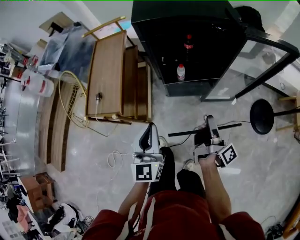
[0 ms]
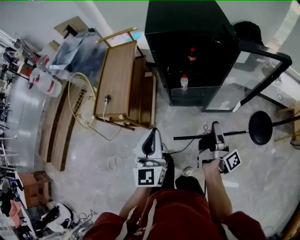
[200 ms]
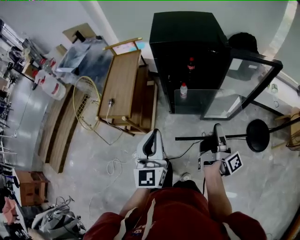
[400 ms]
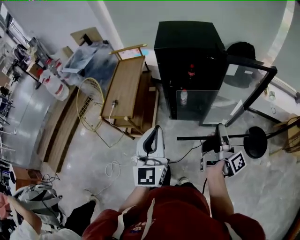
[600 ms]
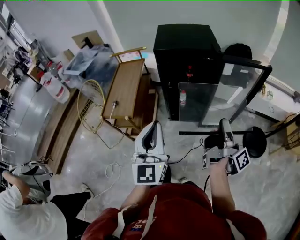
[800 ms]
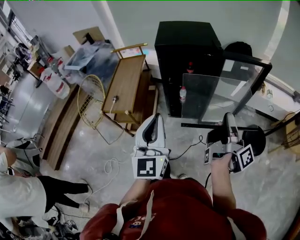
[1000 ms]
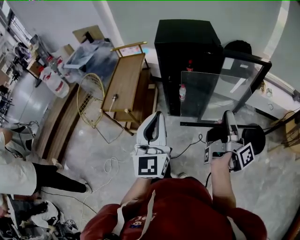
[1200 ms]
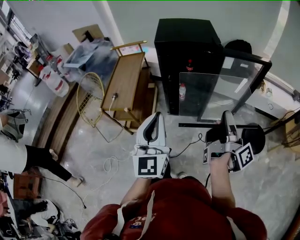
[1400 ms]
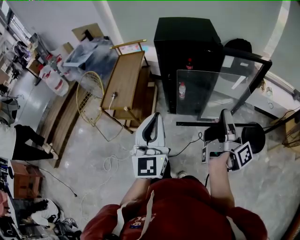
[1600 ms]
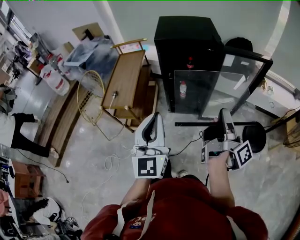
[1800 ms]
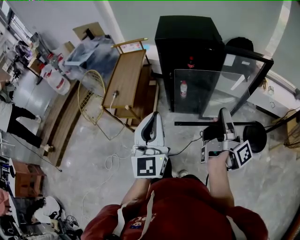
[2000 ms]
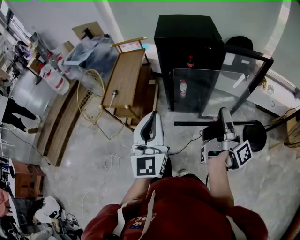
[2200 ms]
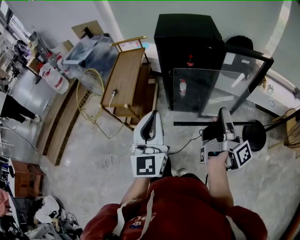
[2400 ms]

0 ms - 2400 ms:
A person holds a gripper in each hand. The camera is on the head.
0 ms - 1200 ms: The grippers both shift upward and backward by about 25 cm.
1200 ms - 2400 ms: The grippers stay close to where they were, moving slightly.

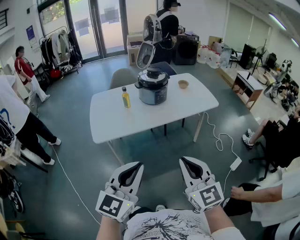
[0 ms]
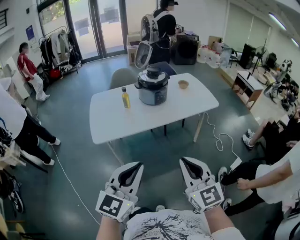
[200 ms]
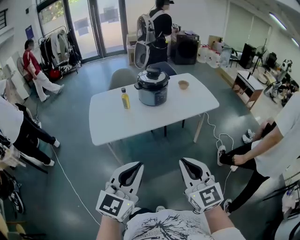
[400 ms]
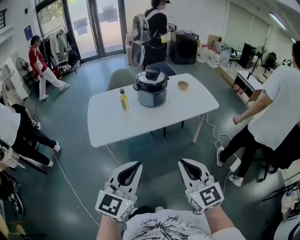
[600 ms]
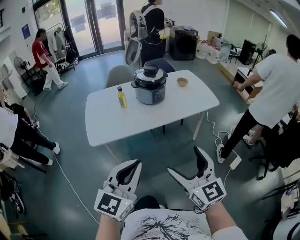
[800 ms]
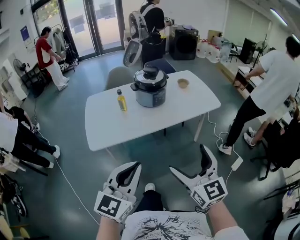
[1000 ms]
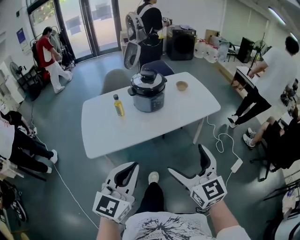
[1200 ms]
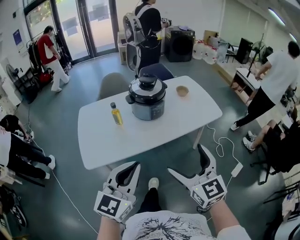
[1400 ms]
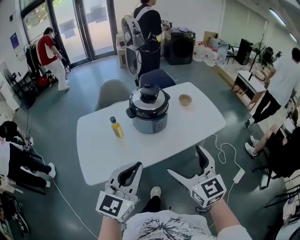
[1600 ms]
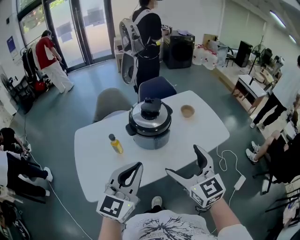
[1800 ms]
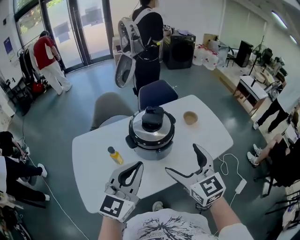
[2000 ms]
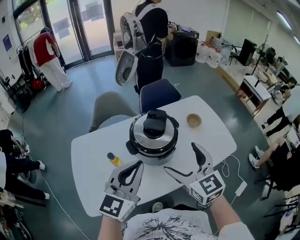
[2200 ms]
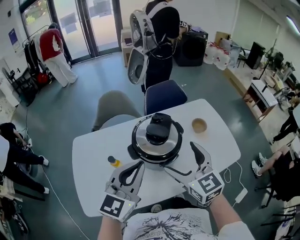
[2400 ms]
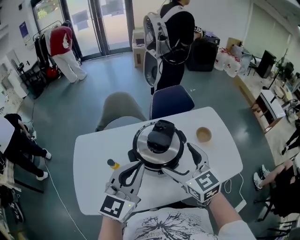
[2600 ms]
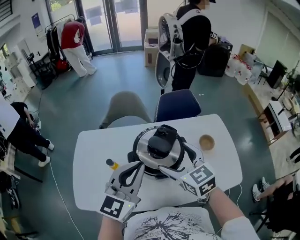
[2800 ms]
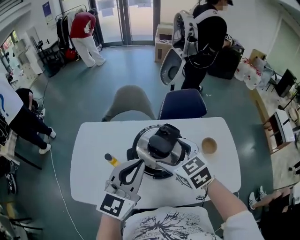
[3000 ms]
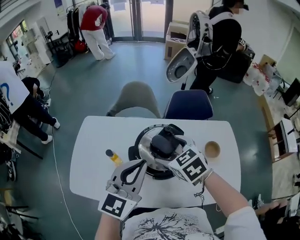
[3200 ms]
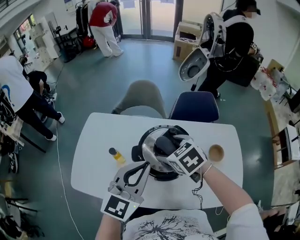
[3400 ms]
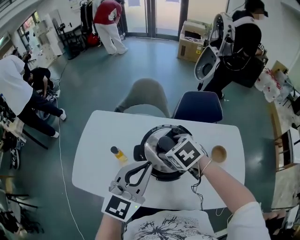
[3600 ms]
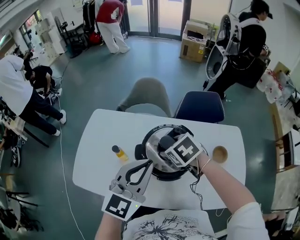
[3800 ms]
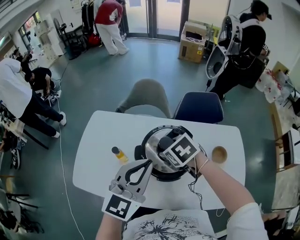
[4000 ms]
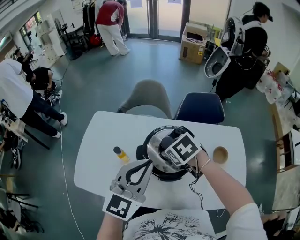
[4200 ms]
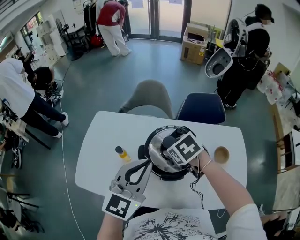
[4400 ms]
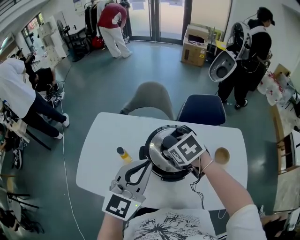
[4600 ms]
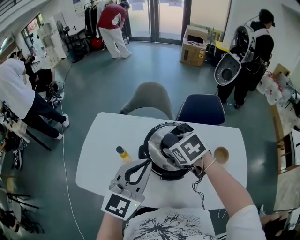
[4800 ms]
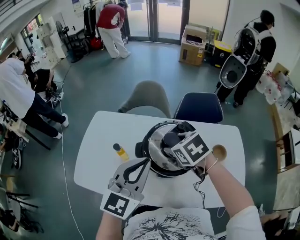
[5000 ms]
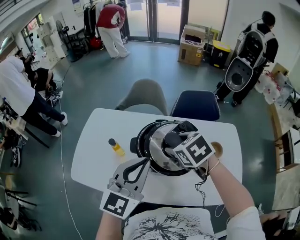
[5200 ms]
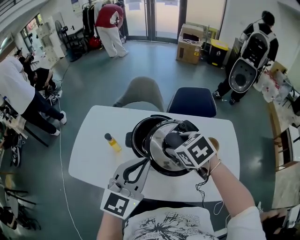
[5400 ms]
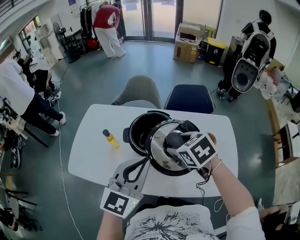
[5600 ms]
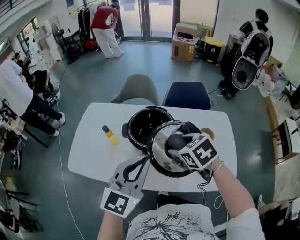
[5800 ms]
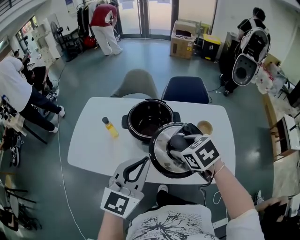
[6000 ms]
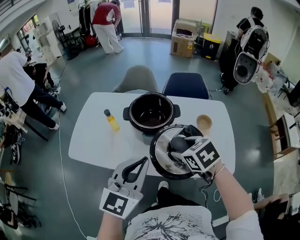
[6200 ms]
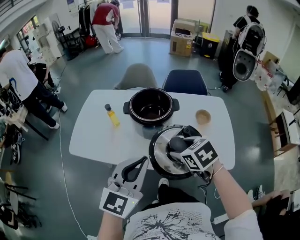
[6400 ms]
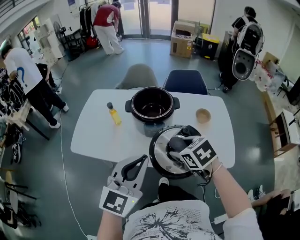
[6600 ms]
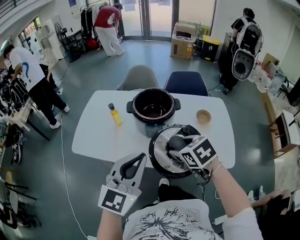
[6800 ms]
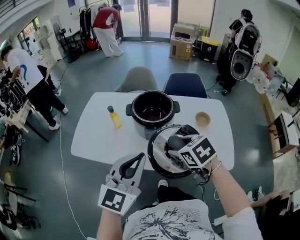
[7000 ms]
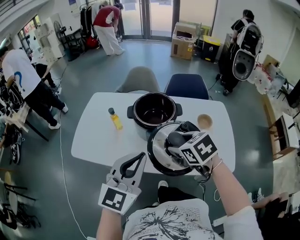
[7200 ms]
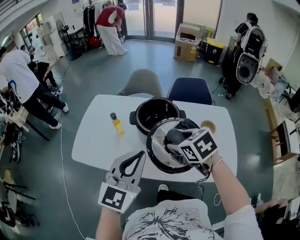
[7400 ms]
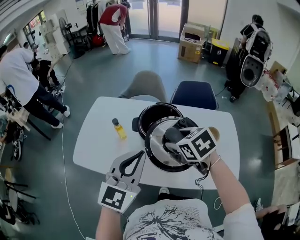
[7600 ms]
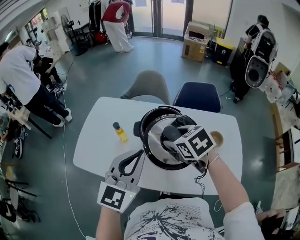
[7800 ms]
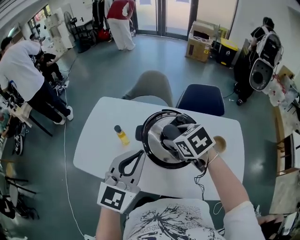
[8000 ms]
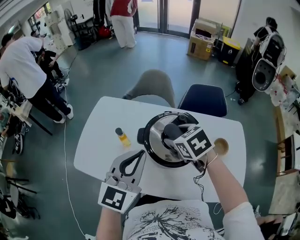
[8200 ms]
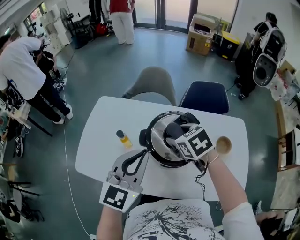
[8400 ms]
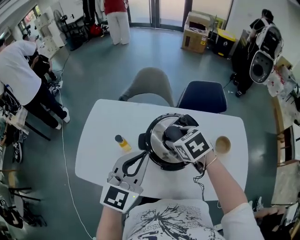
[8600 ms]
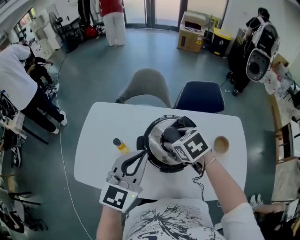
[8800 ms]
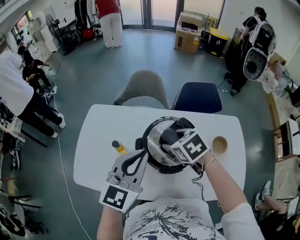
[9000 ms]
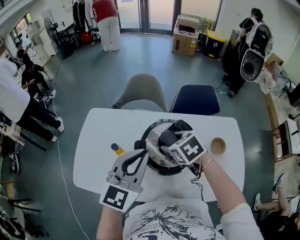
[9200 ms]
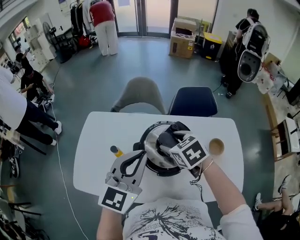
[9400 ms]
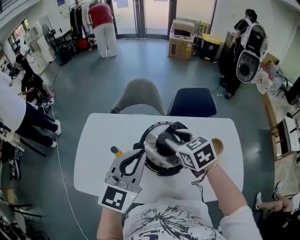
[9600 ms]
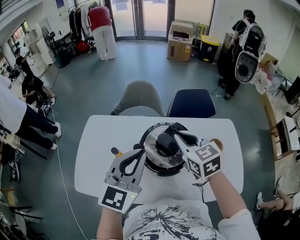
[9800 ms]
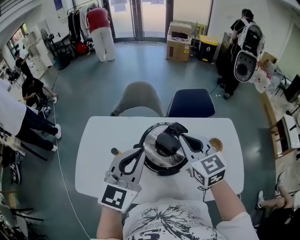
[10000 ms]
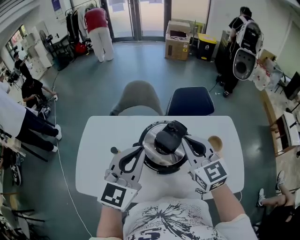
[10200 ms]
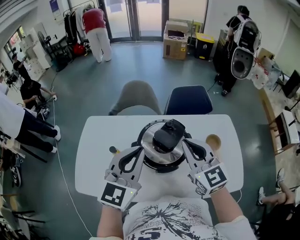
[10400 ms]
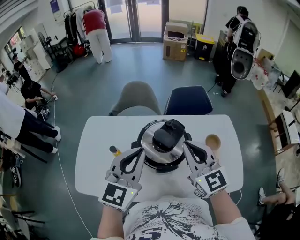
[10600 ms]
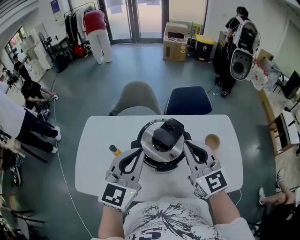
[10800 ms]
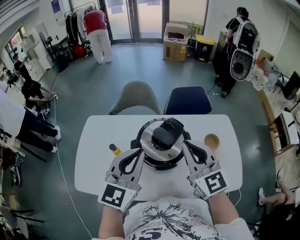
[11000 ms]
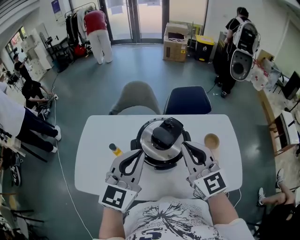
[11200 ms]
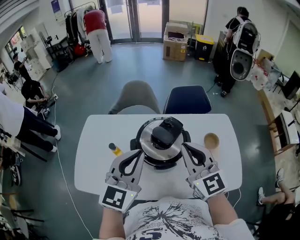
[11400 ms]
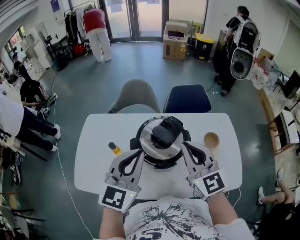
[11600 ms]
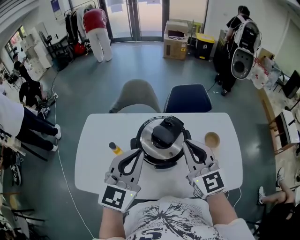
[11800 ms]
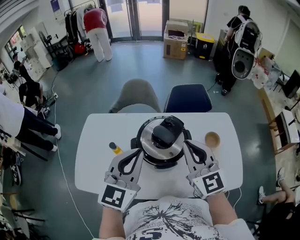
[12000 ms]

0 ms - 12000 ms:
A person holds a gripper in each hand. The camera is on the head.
0 ms - 1600 ms: Both grippers travel together forward, approximately 40 cm. The right gripper opens its fingers.
1600 ms - 3000 ms: The pair of grippers is taken forward, about 50 cm. The left gripper swivels approximately 20 degrees. Meanwhile the right gripper changes its angle by about 40 degrees.
3000 ms - 4400 ms: The right gripper shifts some 5 cm downward, and changes its angle by some 30 degrees.
4400 ms - 6000 ms: The left gripper is displaced backward by approximately 20 cm; the right gripper heads backward and to the right, covering some 25 cm.
6000 ms - 7600 ms: Both grippers travel together to the left, some 5 cm. The left gripper moves about 10 cm backward and comes back. Meanwhile the right gripper travels backward and back again, roughly 10 cm each way.
7600 ms - 9000 ms: The grippers both shift forward by about 20 cm.
9000 ms - 10400 ms: The right gripper shifts about 15 cm upward, backward and to the right, tilts its fingers roughly 50 degrees upward, and closes up; the left gripper ends up about 5 cm from where it was.
10400 ms - 12000 ms: The grippers make only small movements.

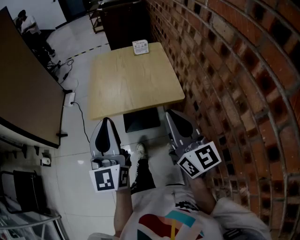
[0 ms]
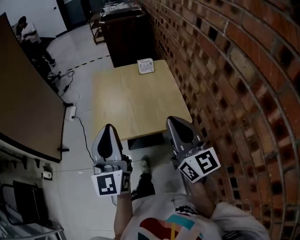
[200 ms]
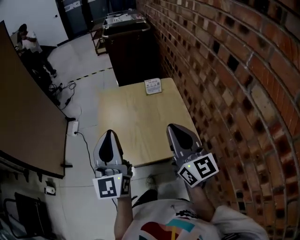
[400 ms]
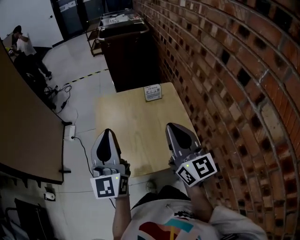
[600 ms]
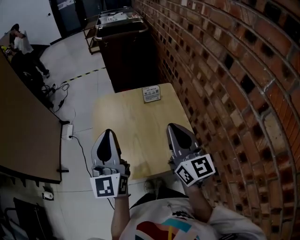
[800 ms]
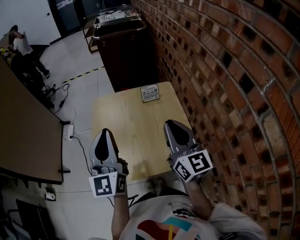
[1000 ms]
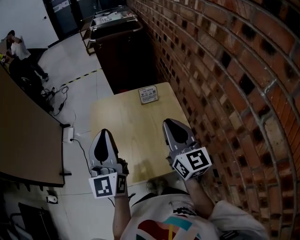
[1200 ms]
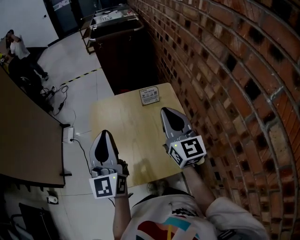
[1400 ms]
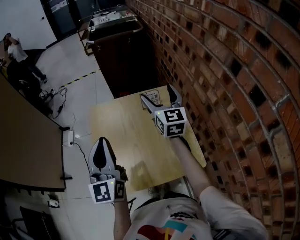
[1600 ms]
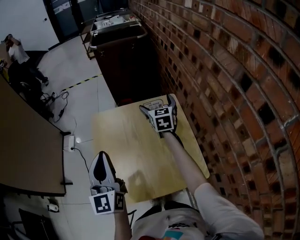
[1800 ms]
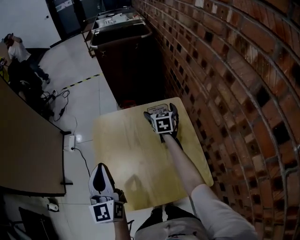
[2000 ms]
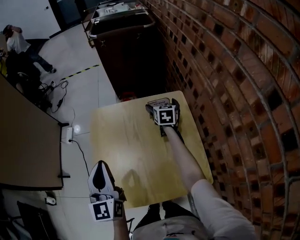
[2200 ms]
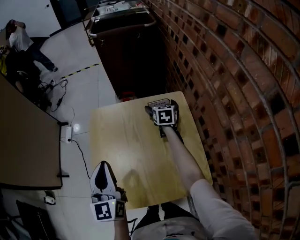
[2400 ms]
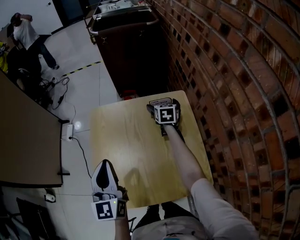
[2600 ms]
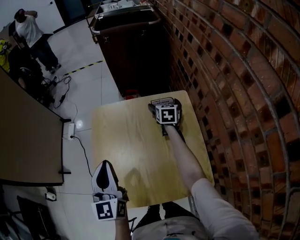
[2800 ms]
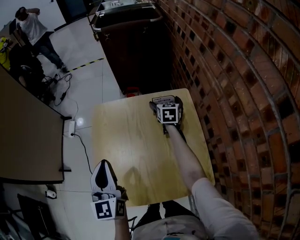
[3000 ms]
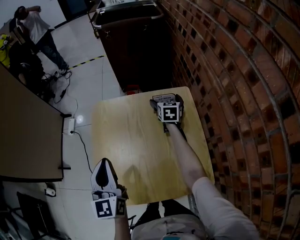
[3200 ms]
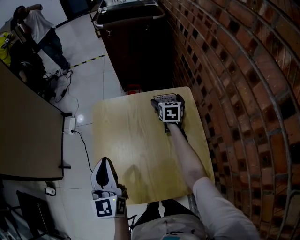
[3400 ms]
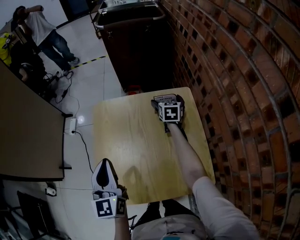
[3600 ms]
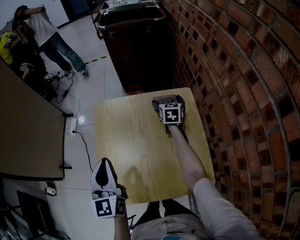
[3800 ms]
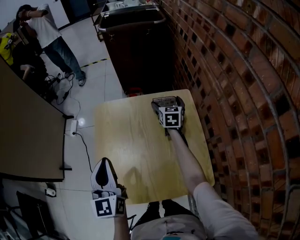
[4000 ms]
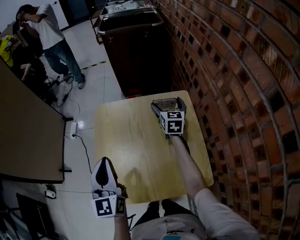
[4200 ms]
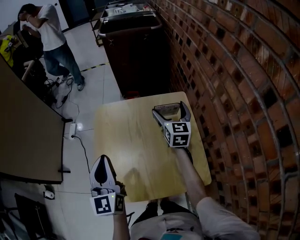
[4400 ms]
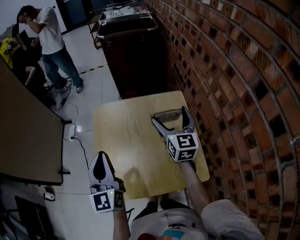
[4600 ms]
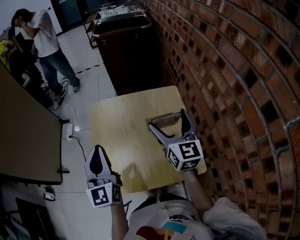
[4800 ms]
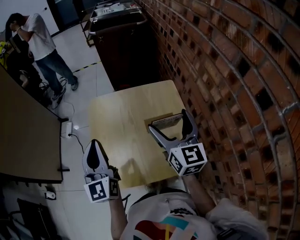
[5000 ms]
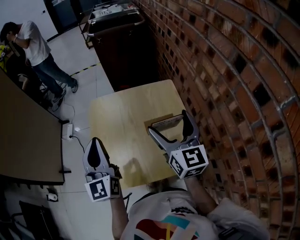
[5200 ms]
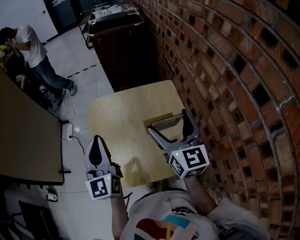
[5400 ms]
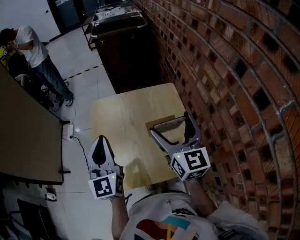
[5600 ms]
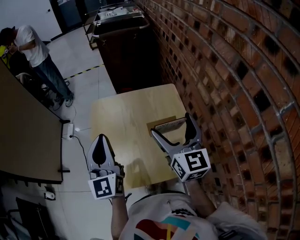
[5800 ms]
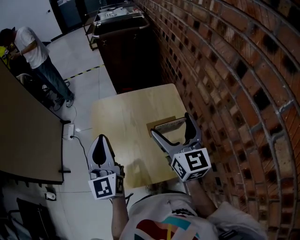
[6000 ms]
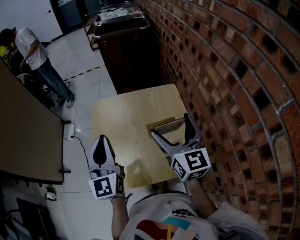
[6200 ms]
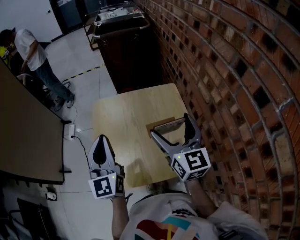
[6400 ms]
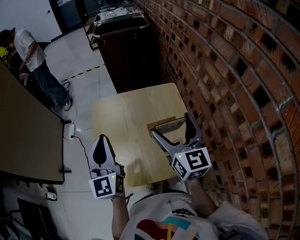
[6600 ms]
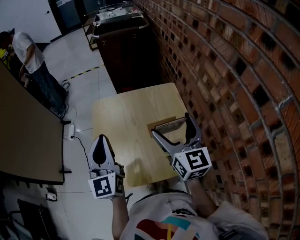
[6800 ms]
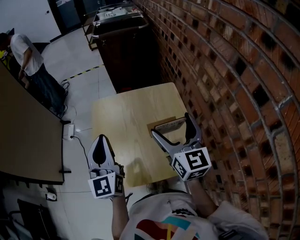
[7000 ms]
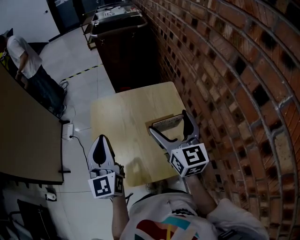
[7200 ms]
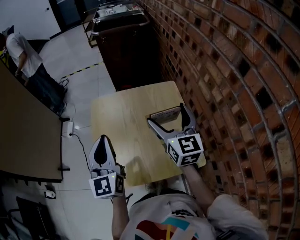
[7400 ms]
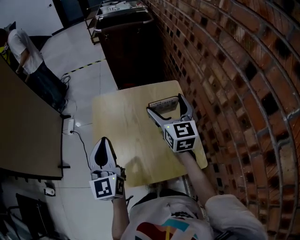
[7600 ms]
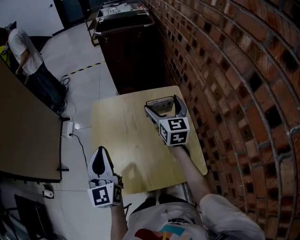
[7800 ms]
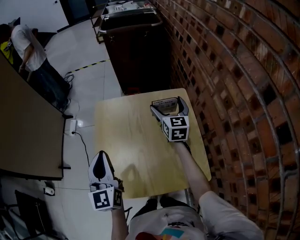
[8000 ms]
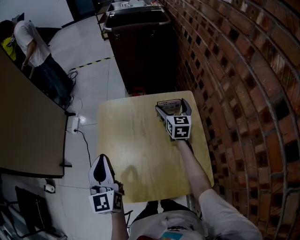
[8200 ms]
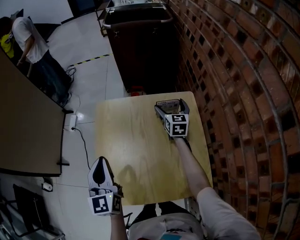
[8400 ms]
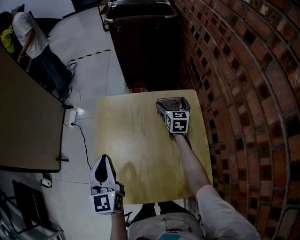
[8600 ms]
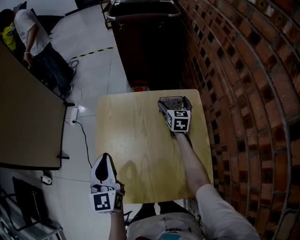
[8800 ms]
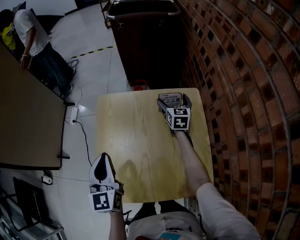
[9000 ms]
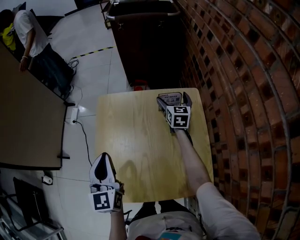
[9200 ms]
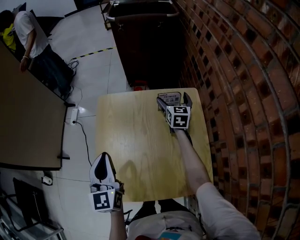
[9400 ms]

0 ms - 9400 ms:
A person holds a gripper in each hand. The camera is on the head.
0 ms - 1600 ms: The two grippers go some 50 cm forward. The right gripper opens its fingers.
1600 ms - 3200 ms: The right gripper moves downward and forward, about 30 cm, and points its fingers about 30 degrees further downward. Meanwhile the left gripper moves downward, approximately 10 cm.
3200 ms - 4800 ms: The left gripper travels upward by about 5 cm. Meanwhile the right gripper moves backward and upward, roughly 35 cm, and changes its angle by roughly 30 degrees.
4800 ms - 6200 ms: The right gripper moves backward, roughly 5 cm.
6200 ms - 7800 ms: The right gripper travels forward and downward by some 20 cm.
7800 ms - 9400 ms: The left gripper shifts approximately 5 cm downward. The right gripper moves forward and downward, about 20 cm.
